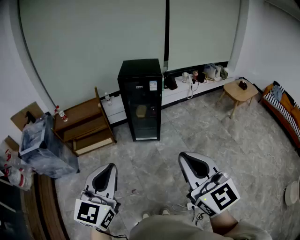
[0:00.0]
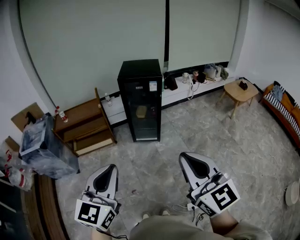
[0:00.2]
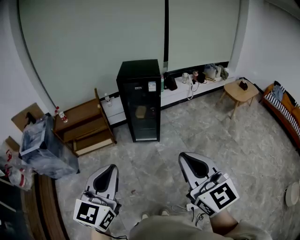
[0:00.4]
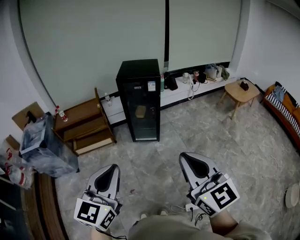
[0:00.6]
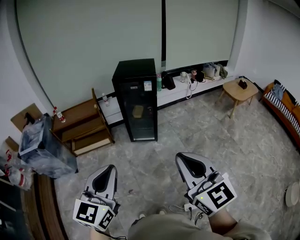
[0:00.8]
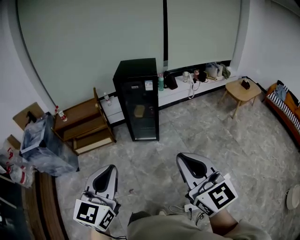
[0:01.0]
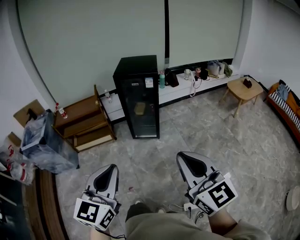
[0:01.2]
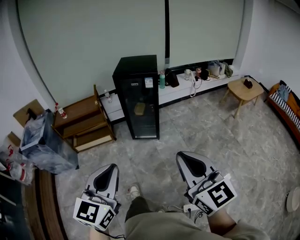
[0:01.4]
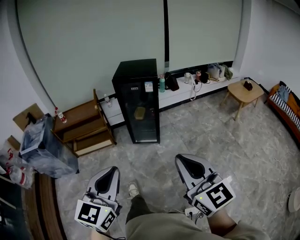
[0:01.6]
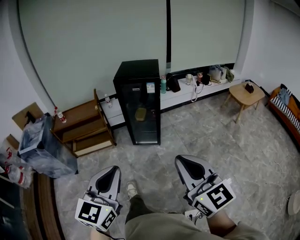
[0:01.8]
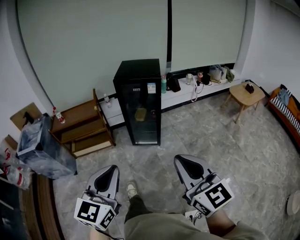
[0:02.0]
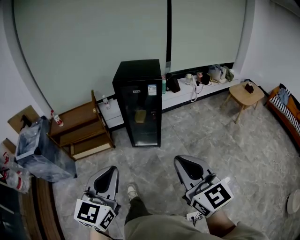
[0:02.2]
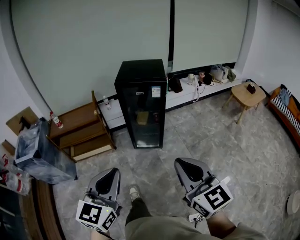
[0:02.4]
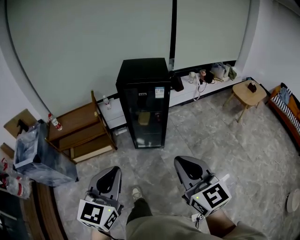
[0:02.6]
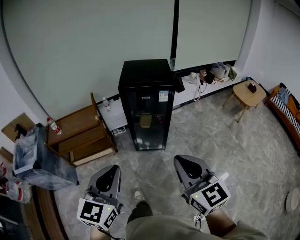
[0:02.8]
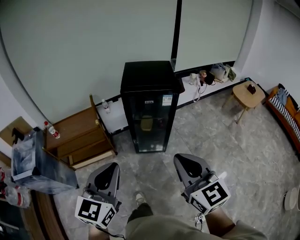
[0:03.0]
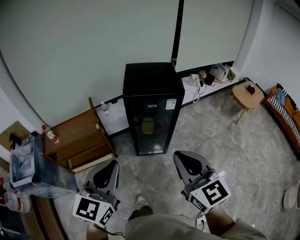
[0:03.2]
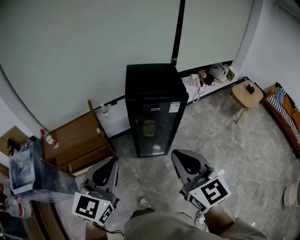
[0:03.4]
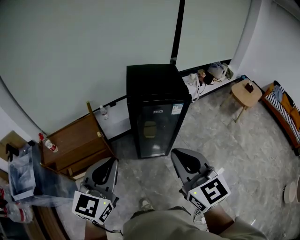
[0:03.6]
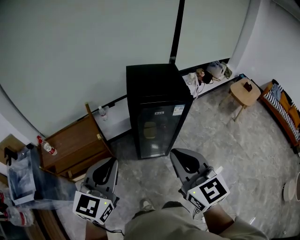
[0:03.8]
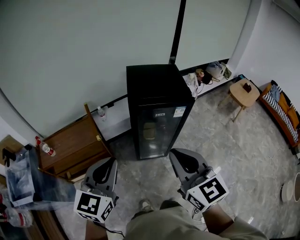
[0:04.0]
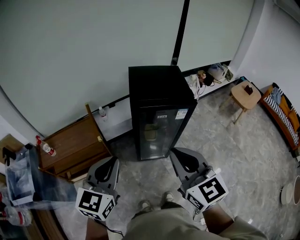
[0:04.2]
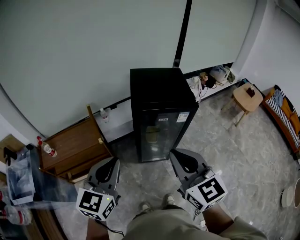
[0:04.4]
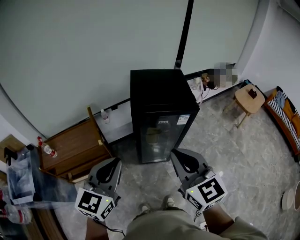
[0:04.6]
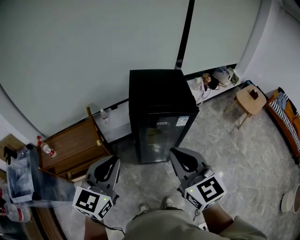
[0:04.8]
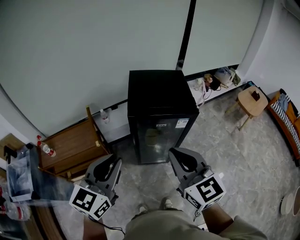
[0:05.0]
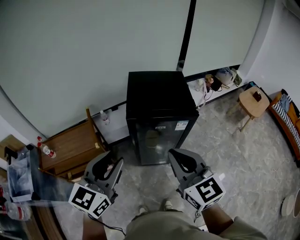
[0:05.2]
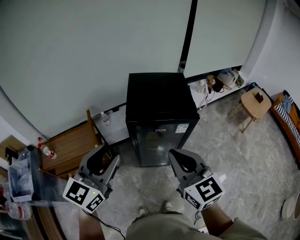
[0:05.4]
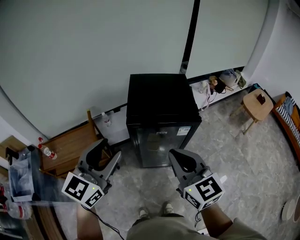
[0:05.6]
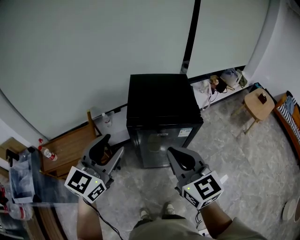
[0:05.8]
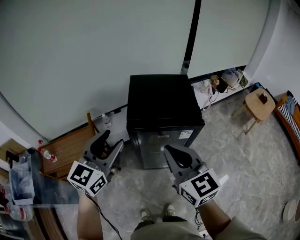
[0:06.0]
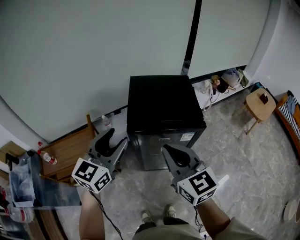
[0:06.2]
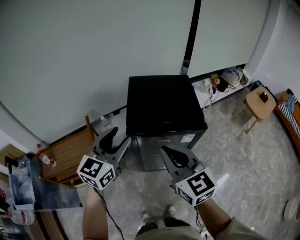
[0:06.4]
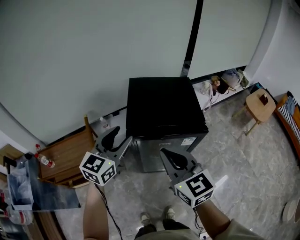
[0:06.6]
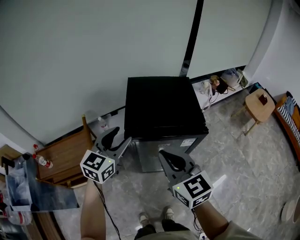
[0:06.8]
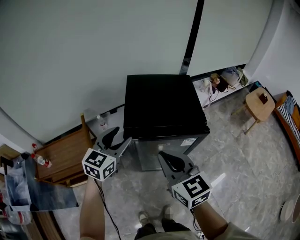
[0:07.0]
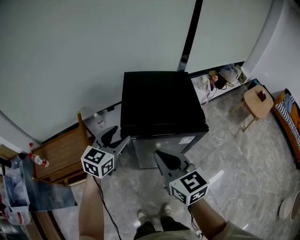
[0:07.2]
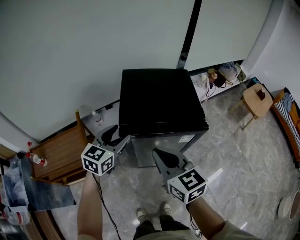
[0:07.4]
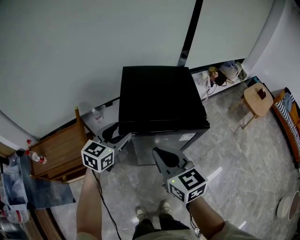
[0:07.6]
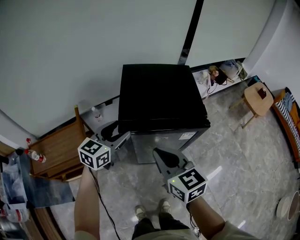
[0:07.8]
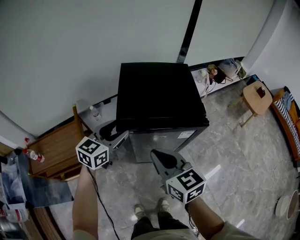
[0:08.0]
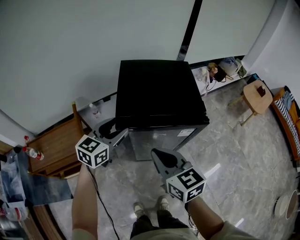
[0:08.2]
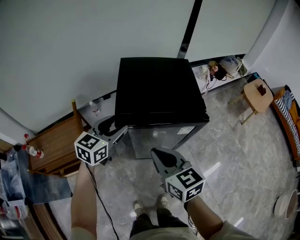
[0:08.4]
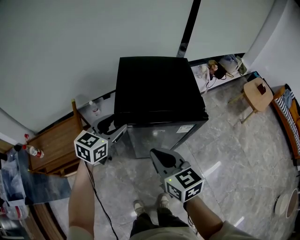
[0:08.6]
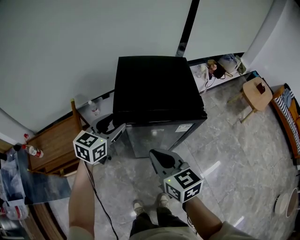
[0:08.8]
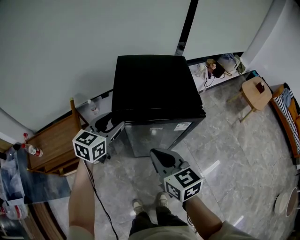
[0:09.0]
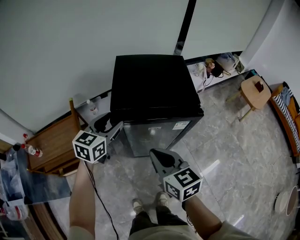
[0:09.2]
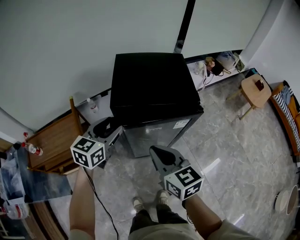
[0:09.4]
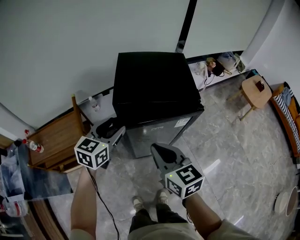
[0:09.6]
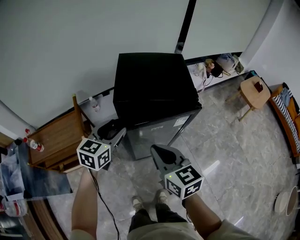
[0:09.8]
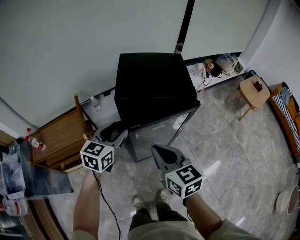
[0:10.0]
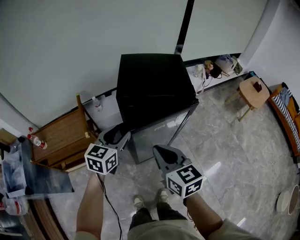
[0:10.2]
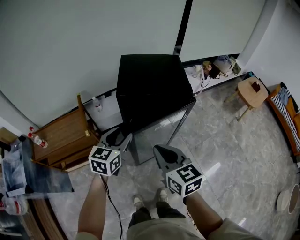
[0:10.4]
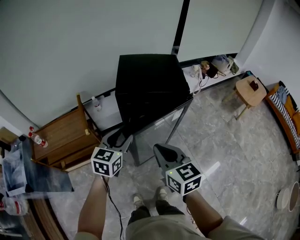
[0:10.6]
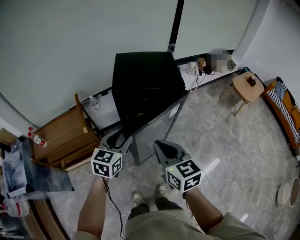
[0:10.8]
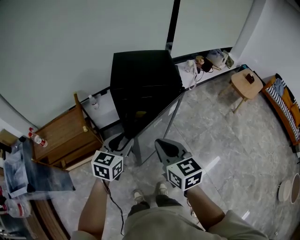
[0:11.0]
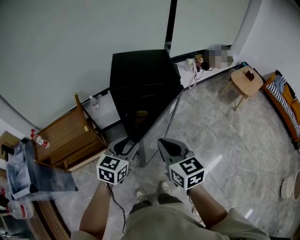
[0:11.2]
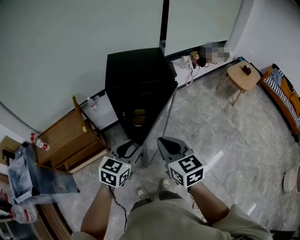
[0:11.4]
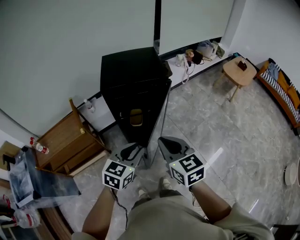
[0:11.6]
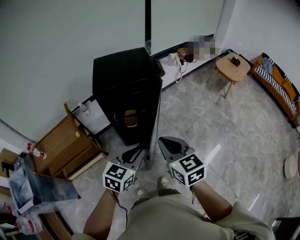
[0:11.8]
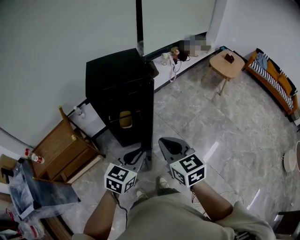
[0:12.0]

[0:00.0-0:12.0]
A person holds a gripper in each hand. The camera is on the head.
0:00.0 to 0:01.6: The right gripper heads to the right and downward, covering roughly 10 cm. The left gripper moves to the right, approximately 10 cm.
0:01.6 to 0:03.0: The two grippers go some 35 cm forward and to the left.
0:03.0 to 0:04.4: Both grippers move forward and to the left, approximately 25 cm.
0:04.4 to 0:06.0: The two grippers go approximately 15 cm forward. The left gripper opens its fingers.
0:06.0 to 0:07.6: The right gripper shifts roughly 15 cm downward and forward. The left gripper shifts roughly 20 cm downward and forward.
0:07.6 to 0:09.0: The right gripper changes place by roughly 5 cm.
0:09.0 to 0:10.4: Both grippers travel together backward, some 15 cm.
0:10.4 to 0:12.0: The right gripper moves to the right and backward, about 20 cm; the left gripper heads to the right and backward, covering about 25 cm, changes its angle by approximately 30 degrees, and closes up.

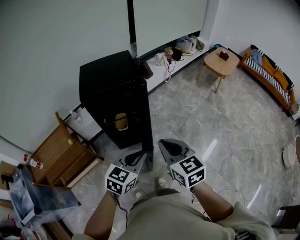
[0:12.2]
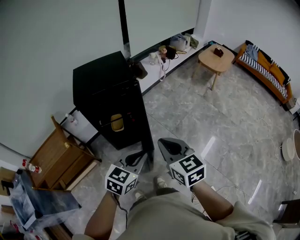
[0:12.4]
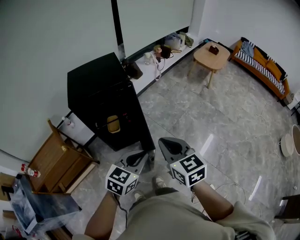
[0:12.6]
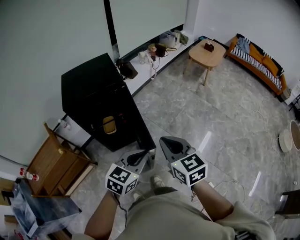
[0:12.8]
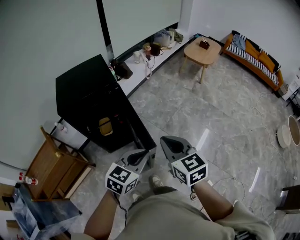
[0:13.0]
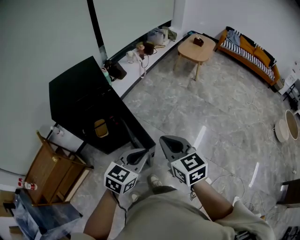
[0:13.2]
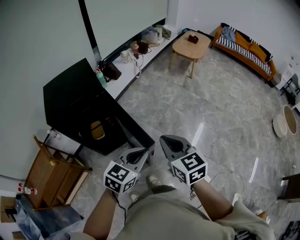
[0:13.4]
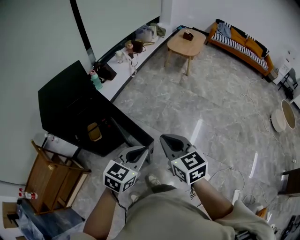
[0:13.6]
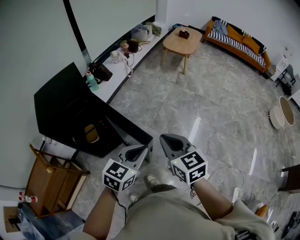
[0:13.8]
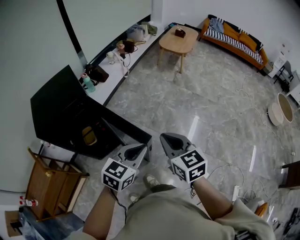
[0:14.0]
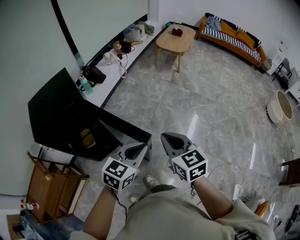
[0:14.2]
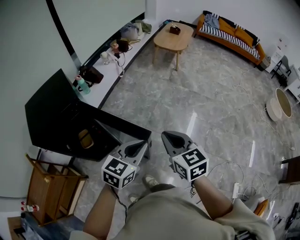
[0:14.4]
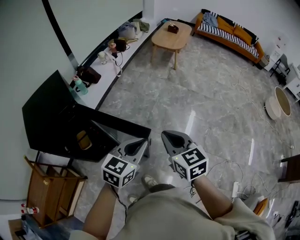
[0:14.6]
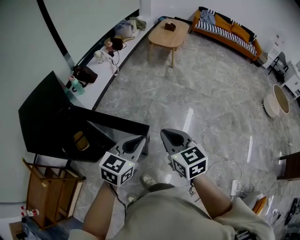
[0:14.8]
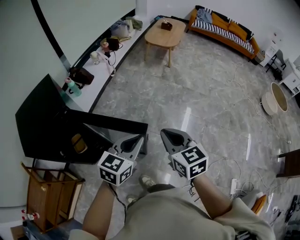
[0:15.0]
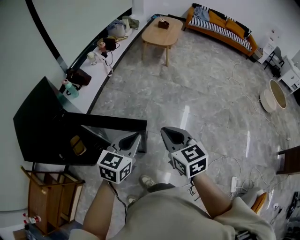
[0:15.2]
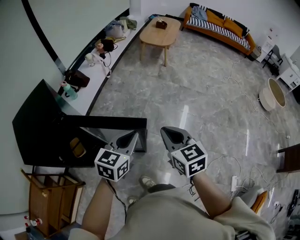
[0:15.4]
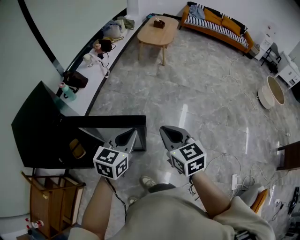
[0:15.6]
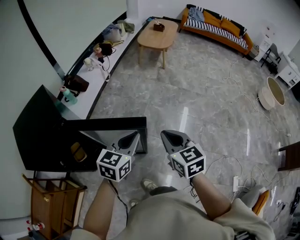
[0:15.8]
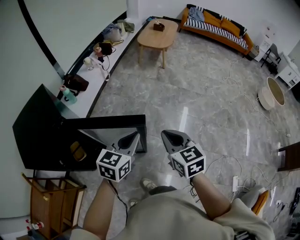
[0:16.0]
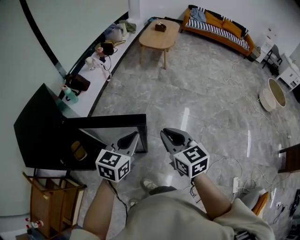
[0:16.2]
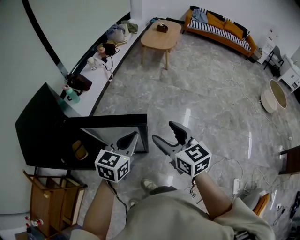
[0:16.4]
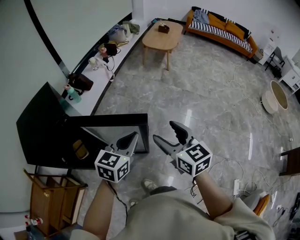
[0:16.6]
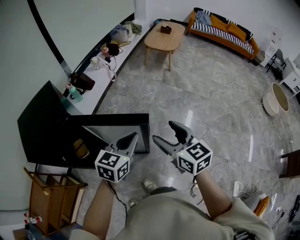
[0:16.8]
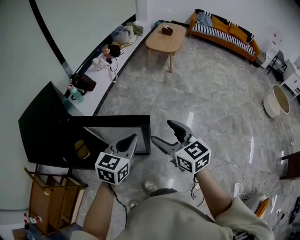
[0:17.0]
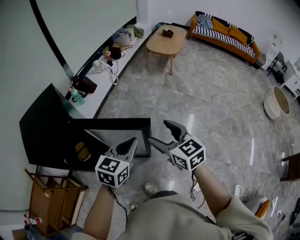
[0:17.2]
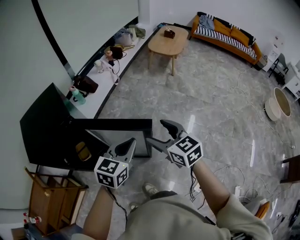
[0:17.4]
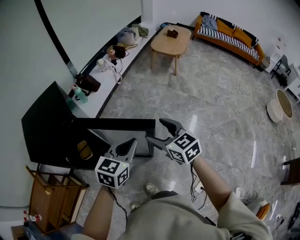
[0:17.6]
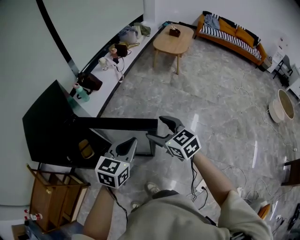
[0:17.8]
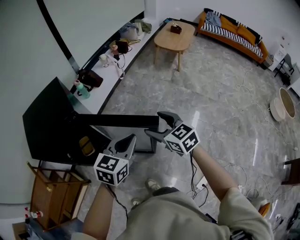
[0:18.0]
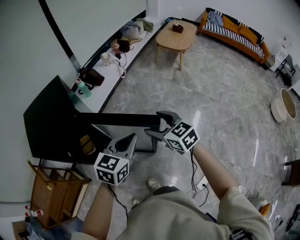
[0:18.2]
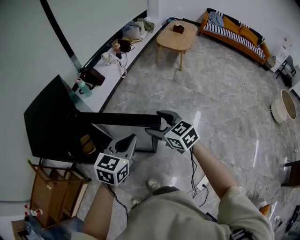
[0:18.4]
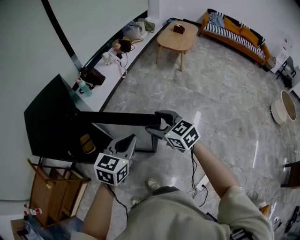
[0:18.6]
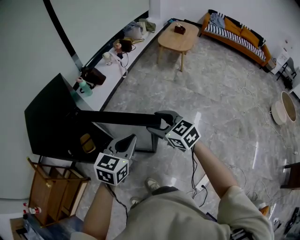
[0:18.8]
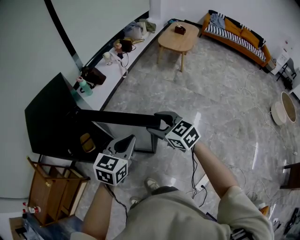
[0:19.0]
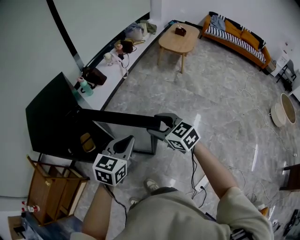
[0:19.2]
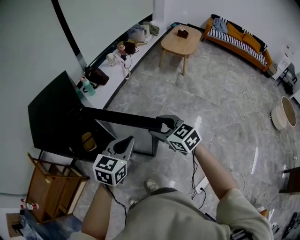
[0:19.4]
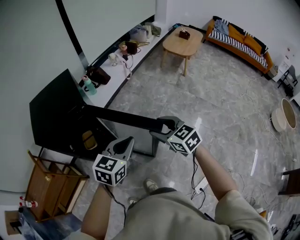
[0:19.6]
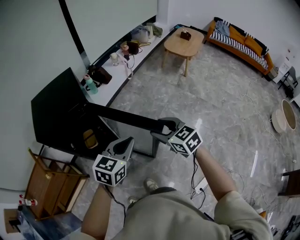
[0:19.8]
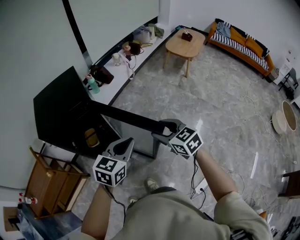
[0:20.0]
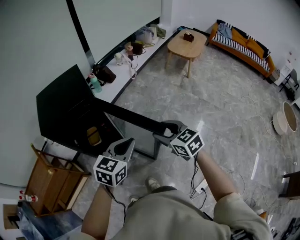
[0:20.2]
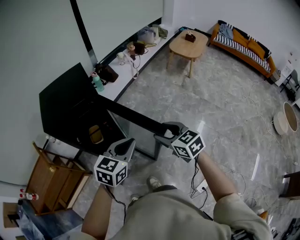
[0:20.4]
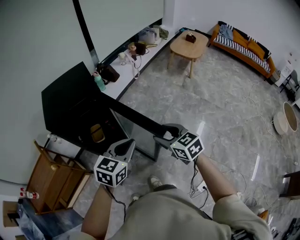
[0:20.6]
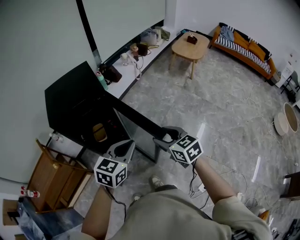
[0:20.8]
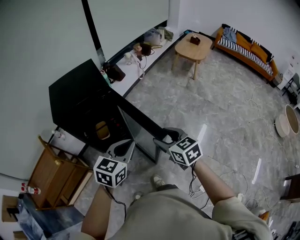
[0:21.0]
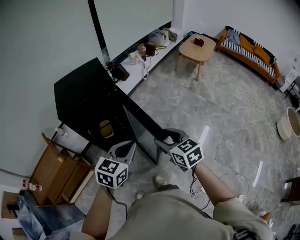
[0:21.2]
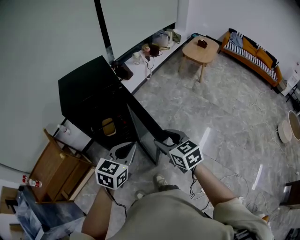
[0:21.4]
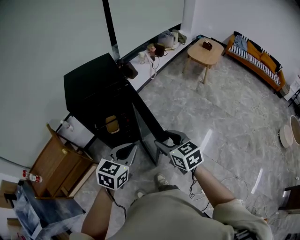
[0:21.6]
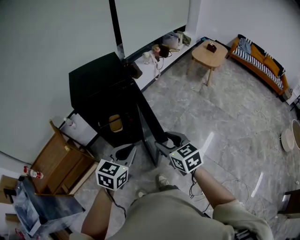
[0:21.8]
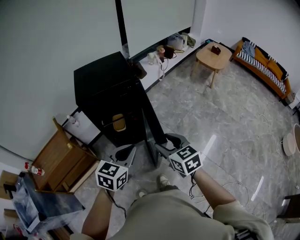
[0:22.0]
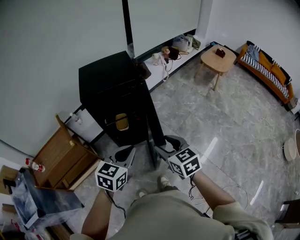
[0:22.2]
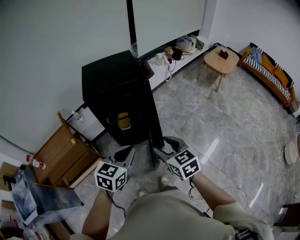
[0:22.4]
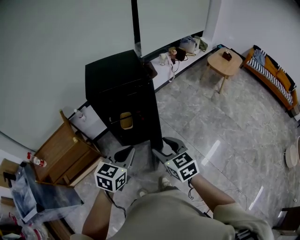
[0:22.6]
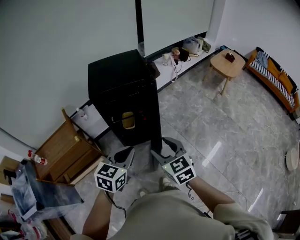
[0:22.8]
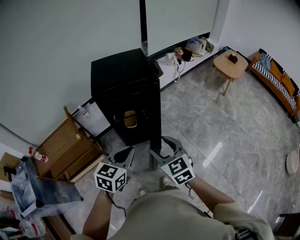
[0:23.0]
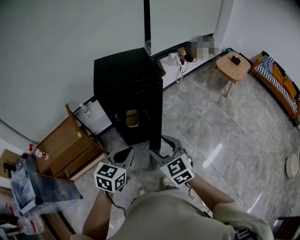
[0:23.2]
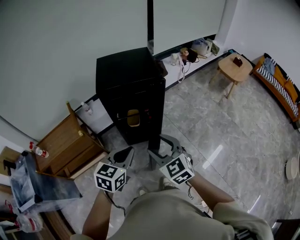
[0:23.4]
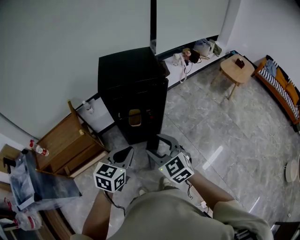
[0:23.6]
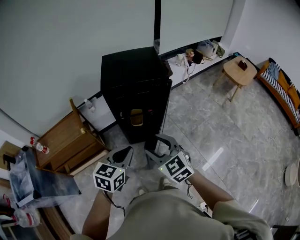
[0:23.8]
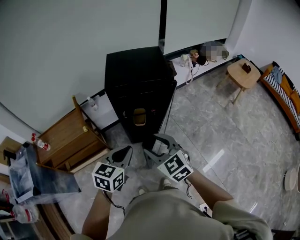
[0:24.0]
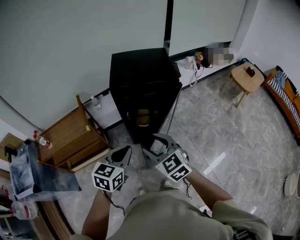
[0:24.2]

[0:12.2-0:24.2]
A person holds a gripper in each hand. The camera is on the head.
0:12.2 to 0:13.8: Both grippers travel together to the right and forward, about 20 cm. The left gripper swivels some 20 degrees.
0:13.8 to 0:15.2: The left gripper is displaced forward by about 15 cm, while the right gripper is displaced forward and to the right by roughly 15 cm.
0:15.2 to 0:16.6: The right gripper opens up.
0:16.6 to 0:18.2: The right gripper moves to the left, forward and downward, some 10 cm, and changes its angle by roughly 20 degrees.
0:18.2 to 0:19.8: The left gripper moves to the left and backward, roughly 5 cm. The right gripper travels backward by roughly 5 cm.
0:19.8 to 0:21.2: The right gripper travels backward and to the left by approximately 15 cm. The left gripper shifts some 15 cm to the left and backward.
0:21.2 to 0:22.6: Both grippers move to the left, about 15 cm.
0:22.6 to 0:24.2: The grippers both shift to the left by approximately 10 cm. The right gripper changes its angle by some 30 degrees.
